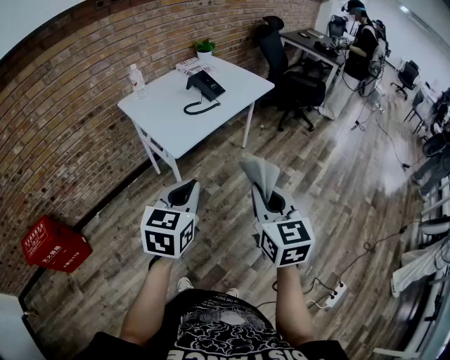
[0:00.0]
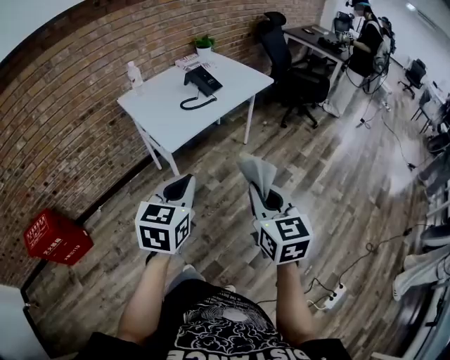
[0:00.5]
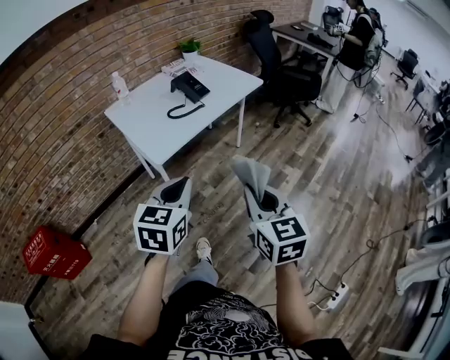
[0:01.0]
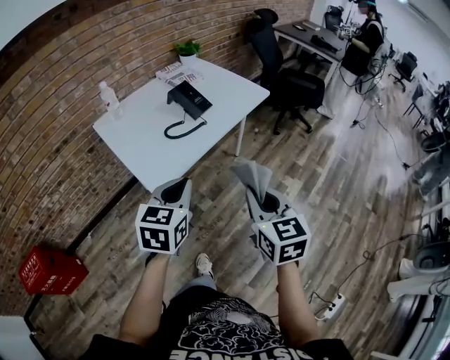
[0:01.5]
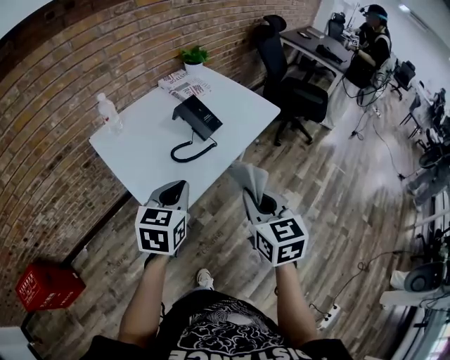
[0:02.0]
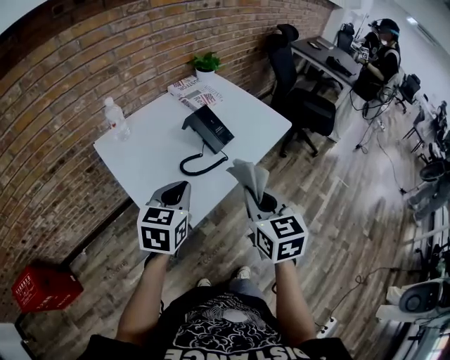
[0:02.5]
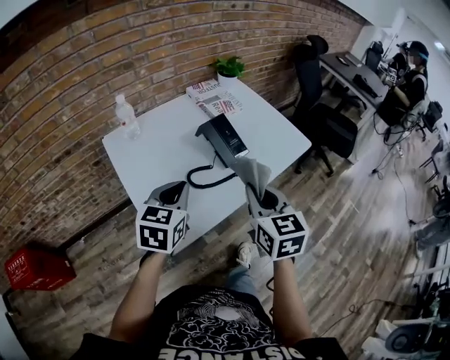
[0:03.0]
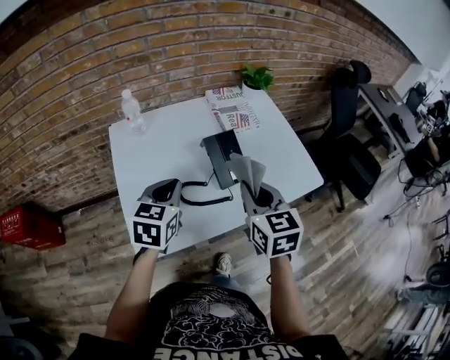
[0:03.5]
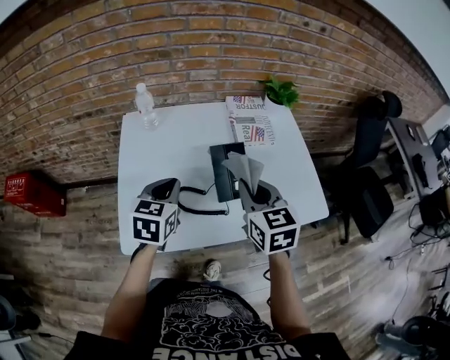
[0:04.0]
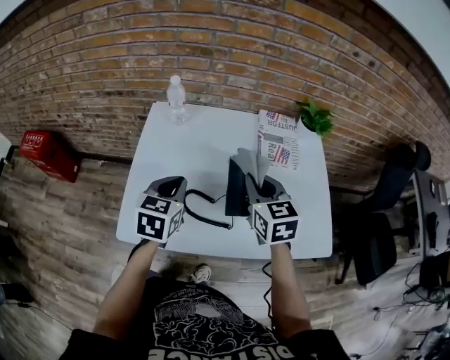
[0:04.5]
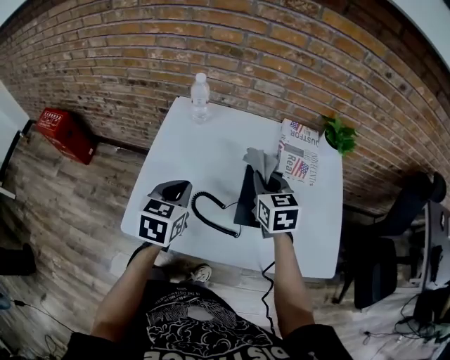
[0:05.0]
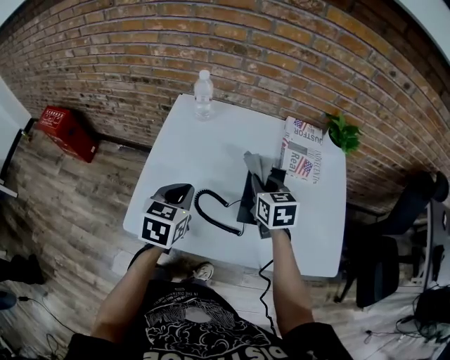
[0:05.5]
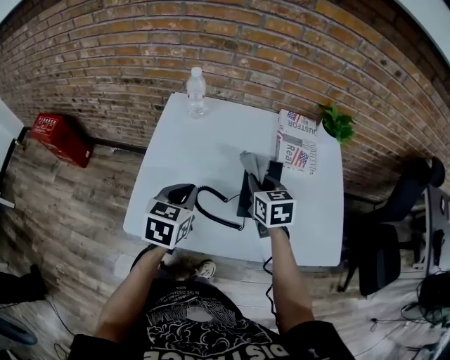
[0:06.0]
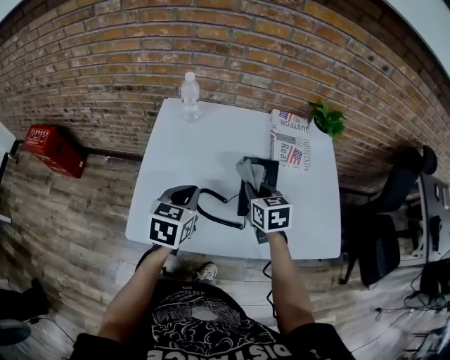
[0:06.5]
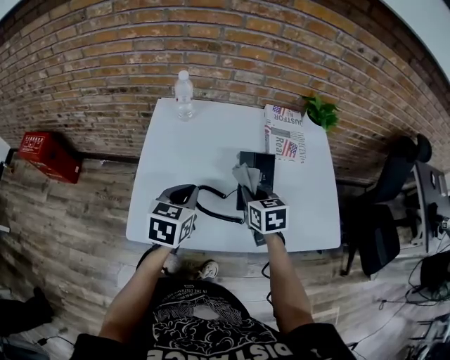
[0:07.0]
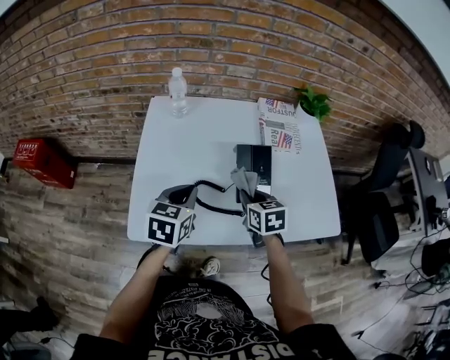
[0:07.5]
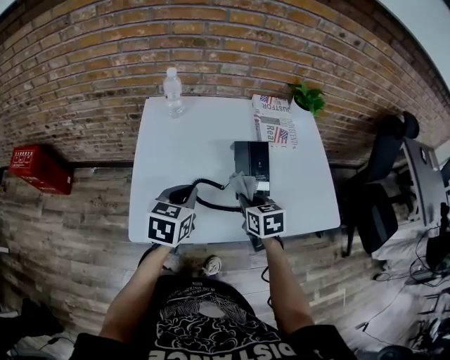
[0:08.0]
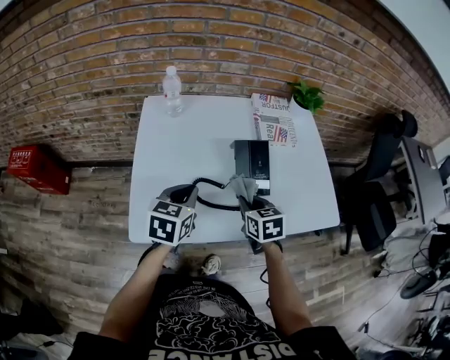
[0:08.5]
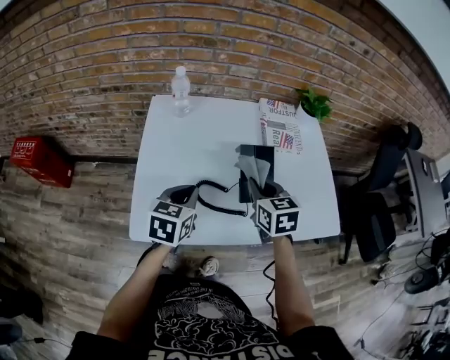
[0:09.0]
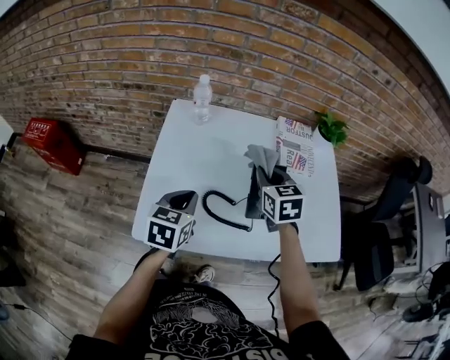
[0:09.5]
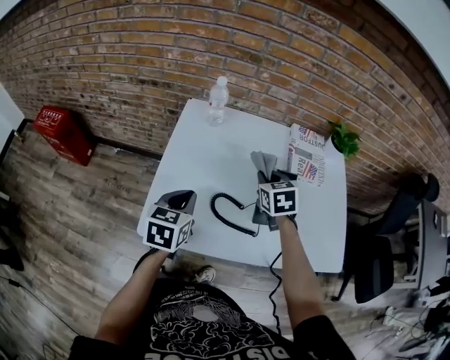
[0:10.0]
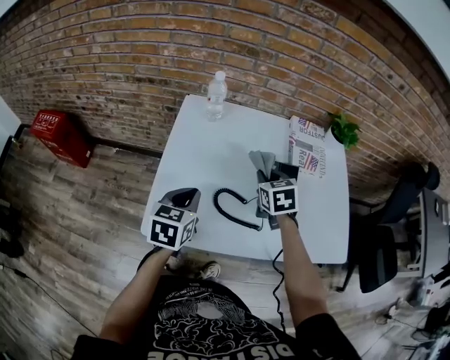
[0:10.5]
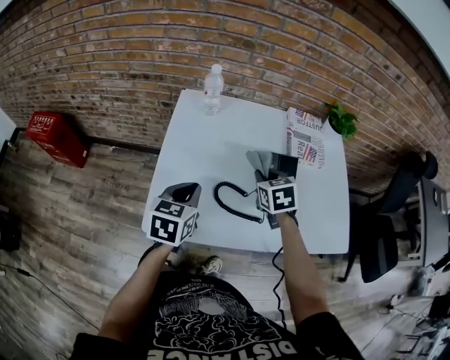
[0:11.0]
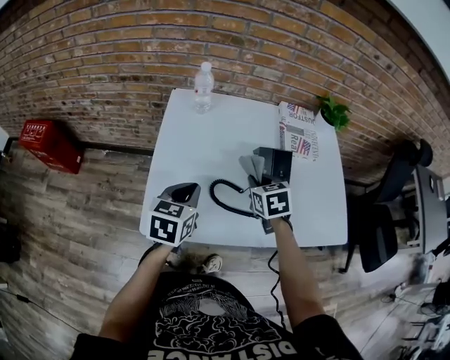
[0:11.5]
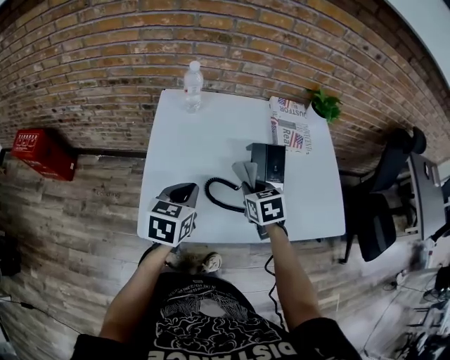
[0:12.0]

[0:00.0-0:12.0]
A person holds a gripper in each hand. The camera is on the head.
0:00.0 to 0:02.0: The grippers both shift forward by roughly 35 cm.
0:02.0 to 0:04.0: The right gripper changes place by approximately 35 cm, and swivels about 40 degrees. Meanwhile the left gripper changes place by some 25 cm, and swivels some 40 degrees.
0:04.0 to 0:06.0: The right gripper shifts approximately 15 cm downward and forward.
0:06.0 to 0:08.0: The right gripper shifts some 10 cm backward and downward.
0:08.0 to 0:10.0: The left gripper shifts about 5 cm to the left. The right gripper is displaced forward and upward by about 15 cm.
0:10.0 to 0:12.0: The right gripper heads backward and downward, covering approximately 10 cm.

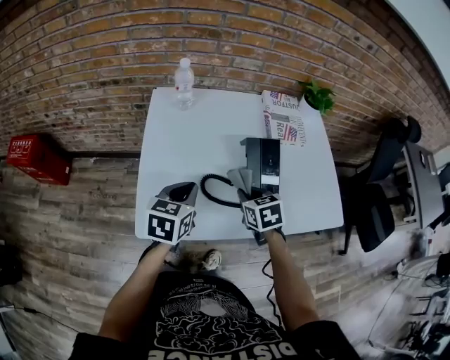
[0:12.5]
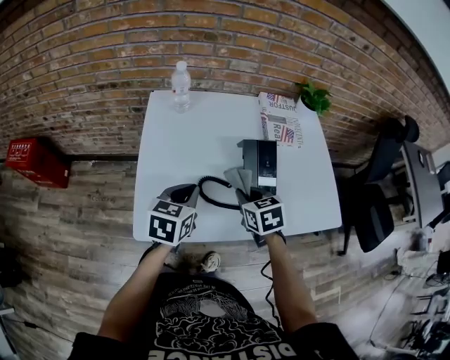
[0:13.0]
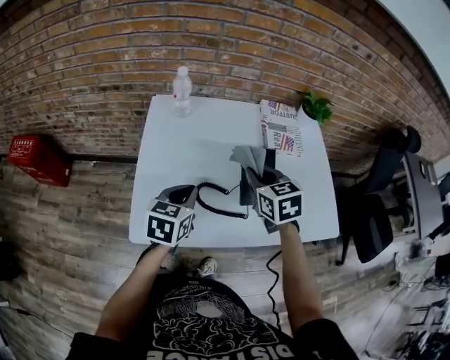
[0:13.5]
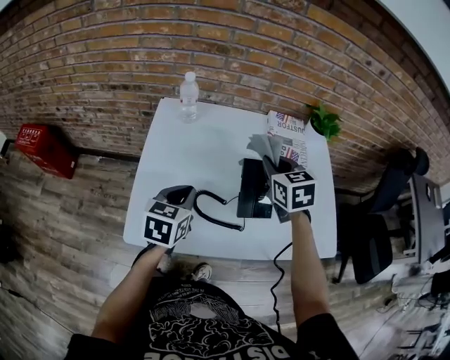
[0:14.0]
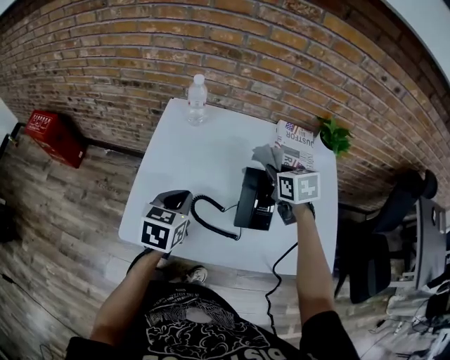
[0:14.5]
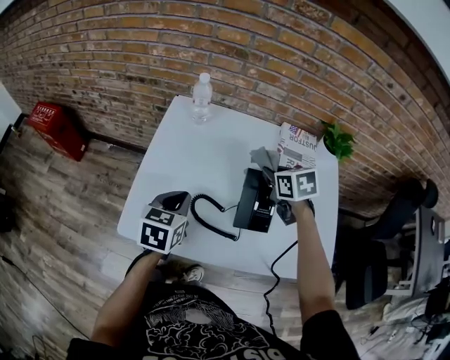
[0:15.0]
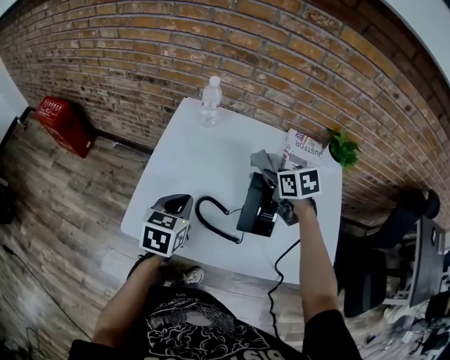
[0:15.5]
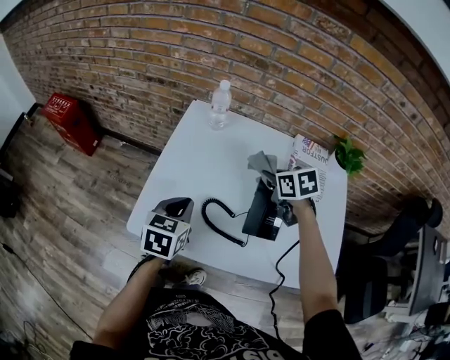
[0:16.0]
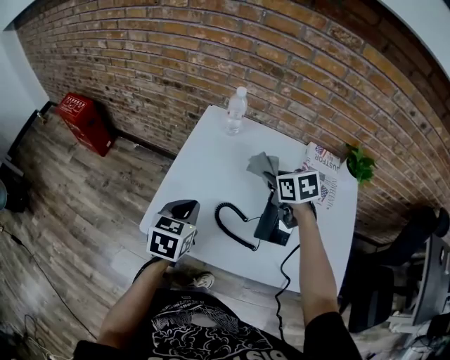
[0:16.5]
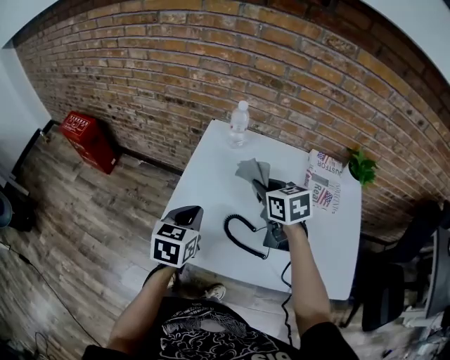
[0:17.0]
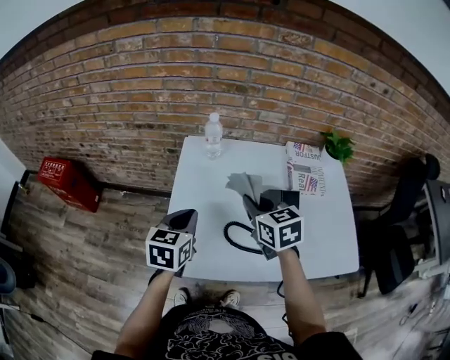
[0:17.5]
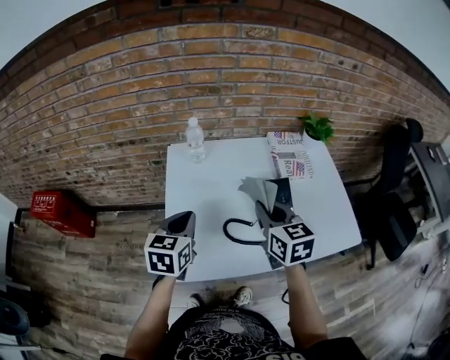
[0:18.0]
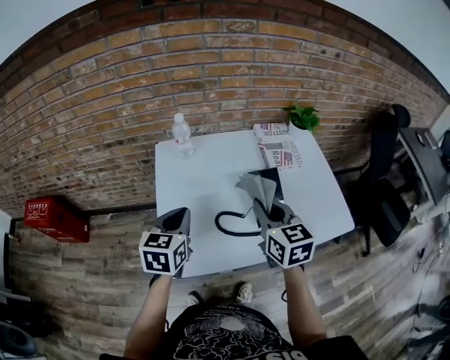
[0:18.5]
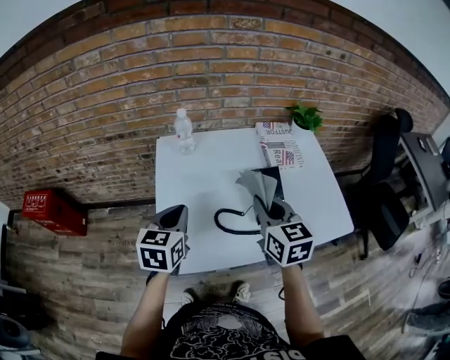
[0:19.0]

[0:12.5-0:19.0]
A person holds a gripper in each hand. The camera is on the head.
0:12.5 to 0:14.5: The right gripper is displaced forward, upward and to the right by about 20 cm.
0:14.5 to 0:17.0: The right gripper heads to the left, covering roughly 15 cm, while the left gripper is displaced to the left by about 10 cm.
0:17.0 to 0:19.0: The left gripper shifts by roughly 5 cm. Meanwhile the right gripper ends up roughly 15 cm from where it was, and turns by approximately 40 degrees.

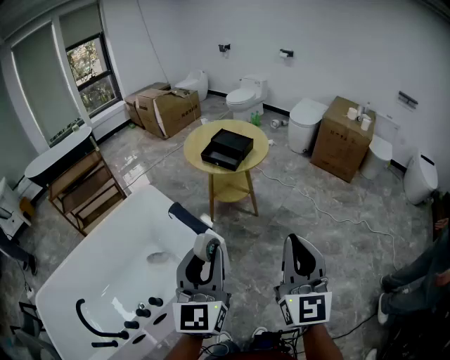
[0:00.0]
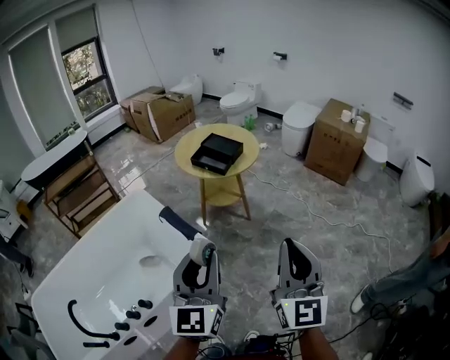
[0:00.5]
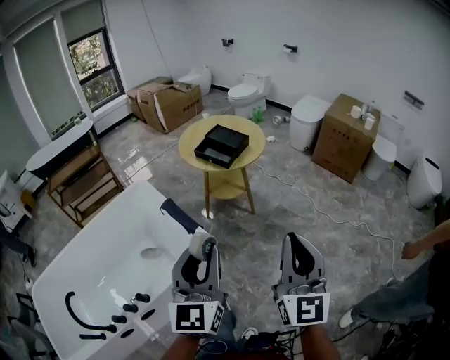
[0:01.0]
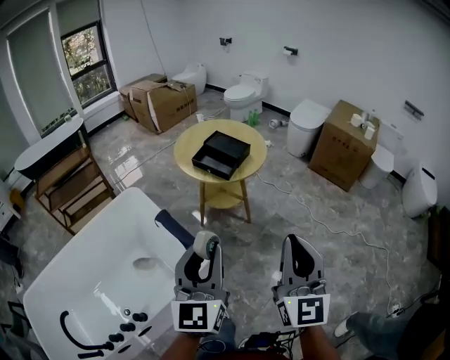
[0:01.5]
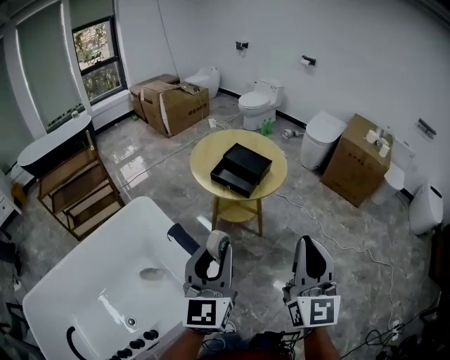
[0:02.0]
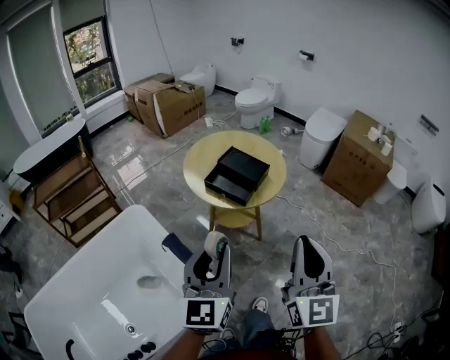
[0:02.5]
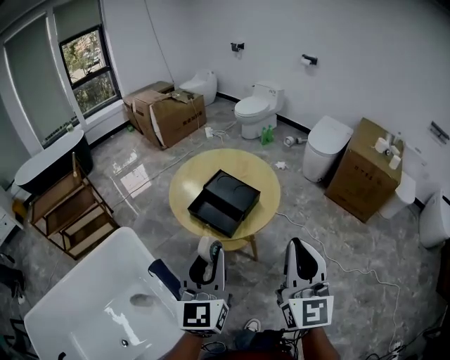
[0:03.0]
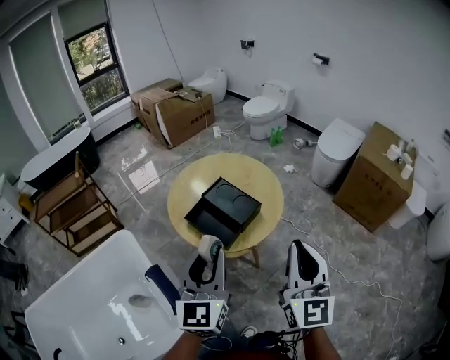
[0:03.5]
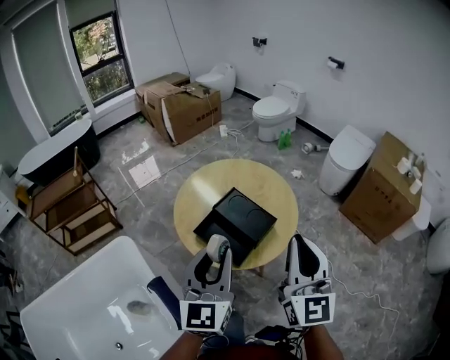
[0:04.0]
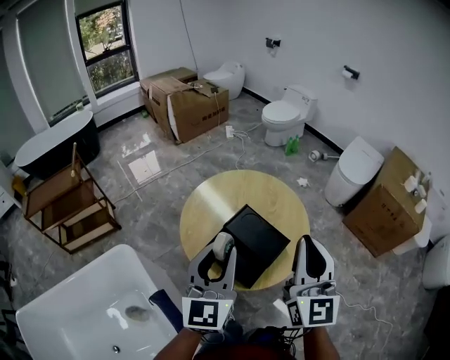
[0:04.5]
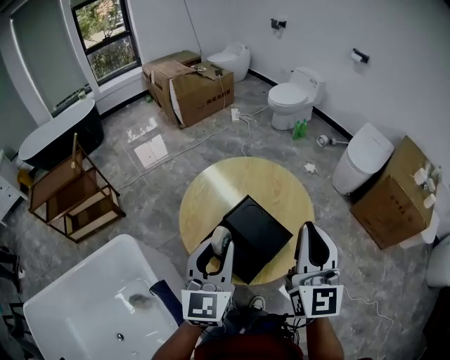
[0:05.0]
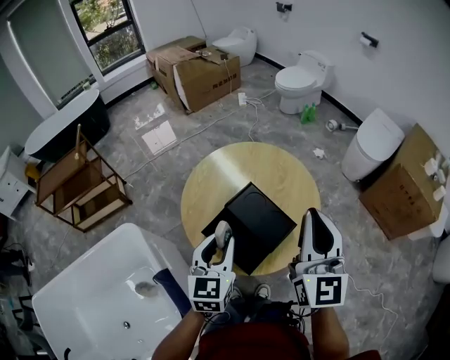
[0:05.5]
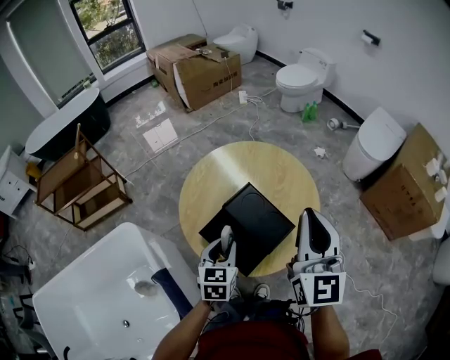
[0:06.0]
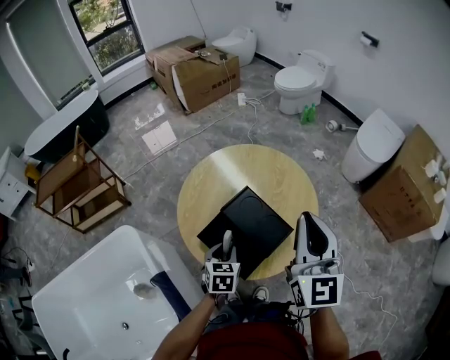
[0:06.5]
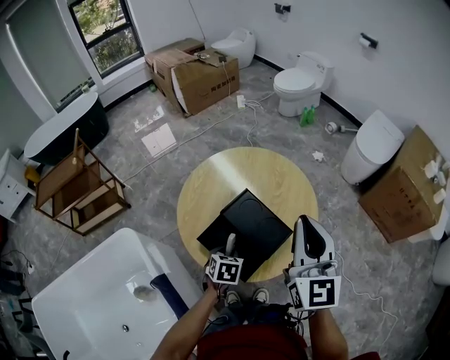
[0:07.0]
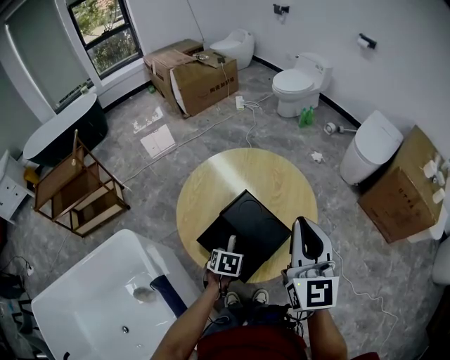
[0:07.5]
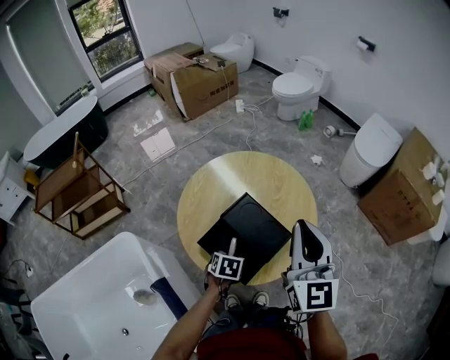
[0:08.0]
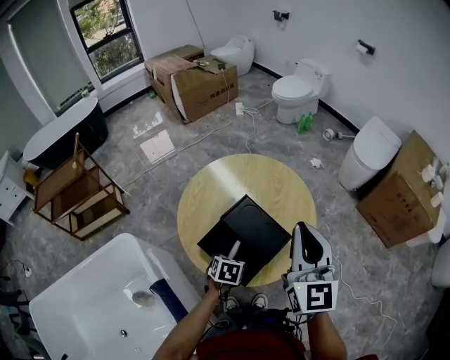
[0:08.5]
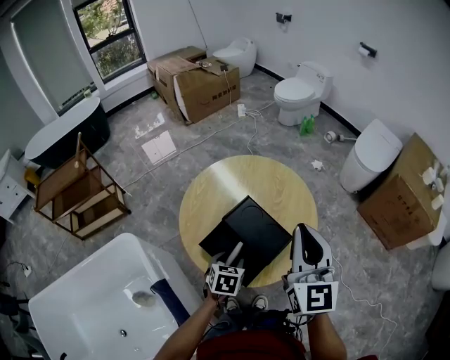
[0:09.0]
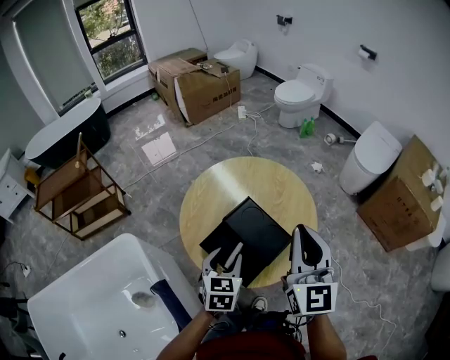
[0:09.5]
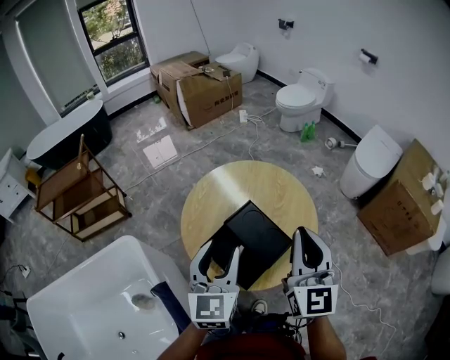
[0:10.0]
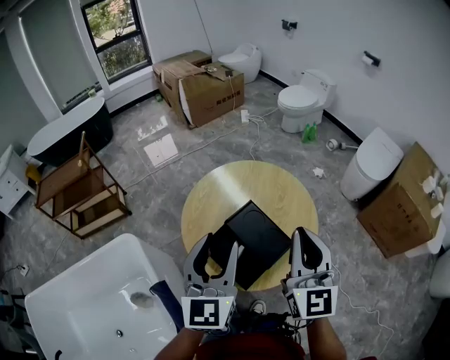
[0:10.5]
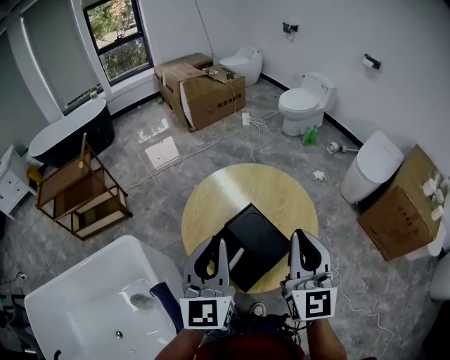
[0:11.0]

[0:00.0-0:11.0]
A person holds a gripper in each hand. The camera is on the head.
0:00.0 to 0:02.0: Both grippers move forward, about 25 cm.
0:02.0 to 0:03.5: Both grippers travel together forward and to the right, about 40 cm.
0:03.5 to 0:05.5: The right gripper travels forward by roughly 30 cm. The left gripper travels forward and downward by some 30 cm, and swivels about 20 degrees.
0:05.5 to 0:07.5: The left gripper heads downward, covering roughly 25 cm, and tilts its fingers some 50 degrees downward.
0:07.5 to 0:09.0: The left gripper opens.
0:09.0 to 0:11.0: The left gripper heads upward, covering about 30 cm, points its fingers some 50 degrees further upward, and closes.
